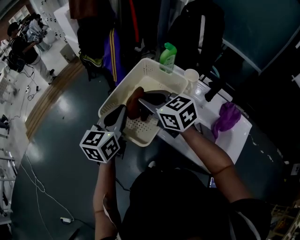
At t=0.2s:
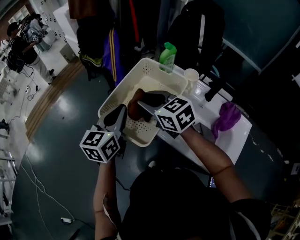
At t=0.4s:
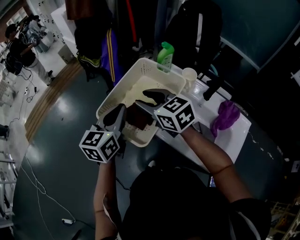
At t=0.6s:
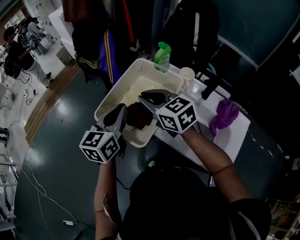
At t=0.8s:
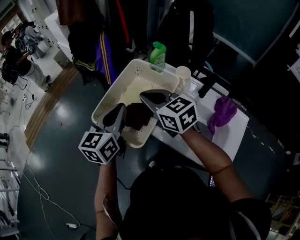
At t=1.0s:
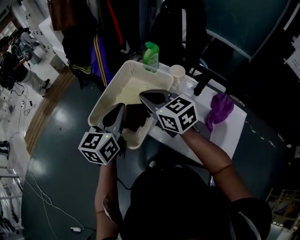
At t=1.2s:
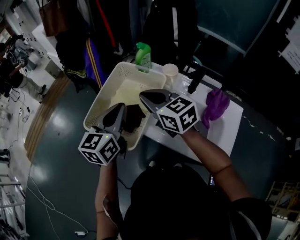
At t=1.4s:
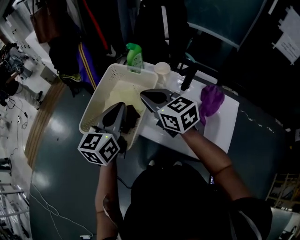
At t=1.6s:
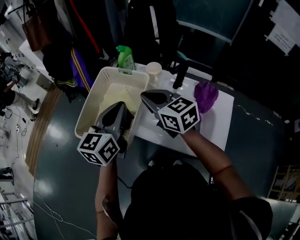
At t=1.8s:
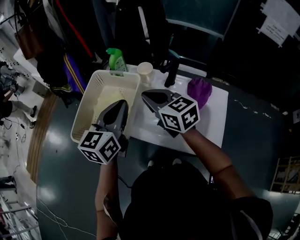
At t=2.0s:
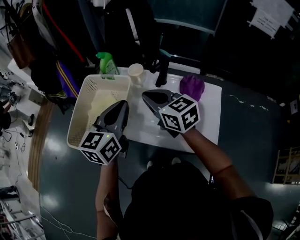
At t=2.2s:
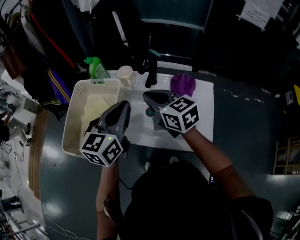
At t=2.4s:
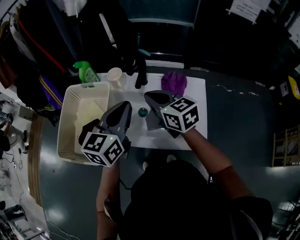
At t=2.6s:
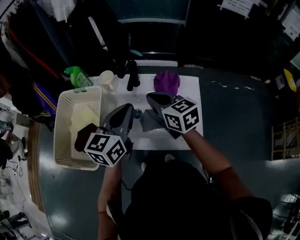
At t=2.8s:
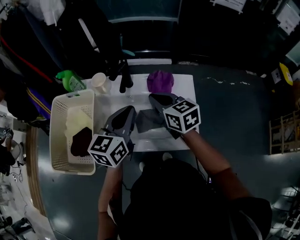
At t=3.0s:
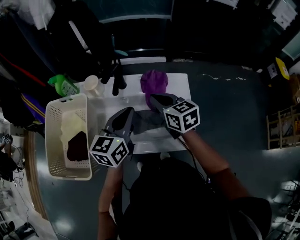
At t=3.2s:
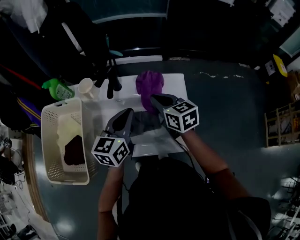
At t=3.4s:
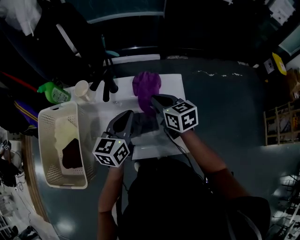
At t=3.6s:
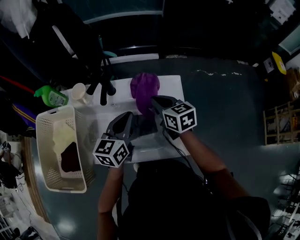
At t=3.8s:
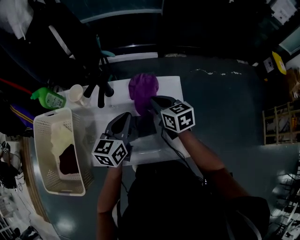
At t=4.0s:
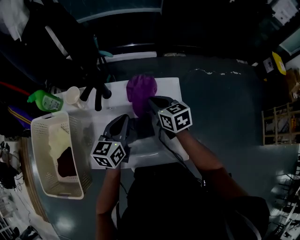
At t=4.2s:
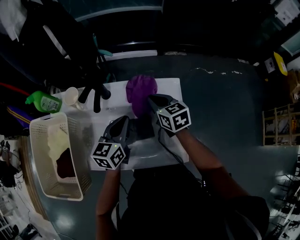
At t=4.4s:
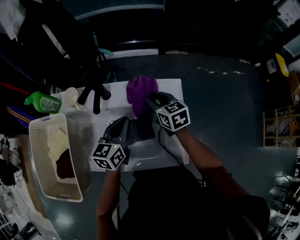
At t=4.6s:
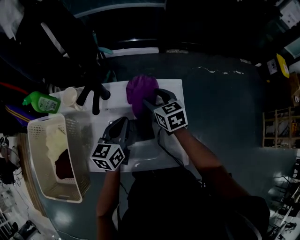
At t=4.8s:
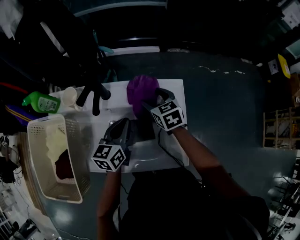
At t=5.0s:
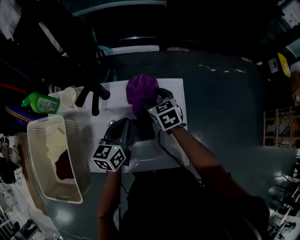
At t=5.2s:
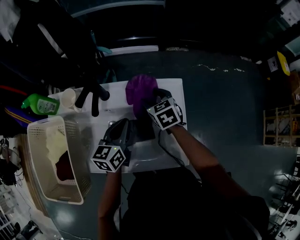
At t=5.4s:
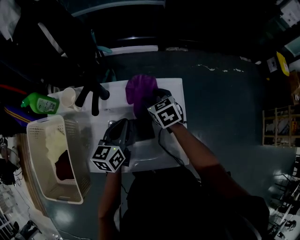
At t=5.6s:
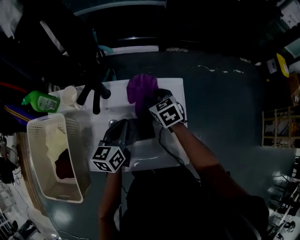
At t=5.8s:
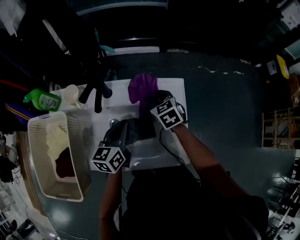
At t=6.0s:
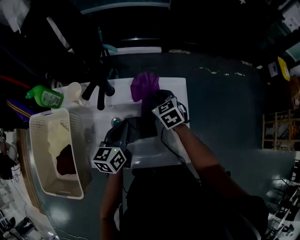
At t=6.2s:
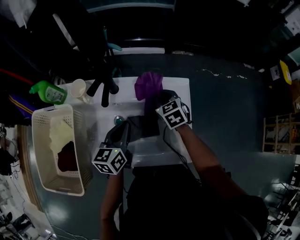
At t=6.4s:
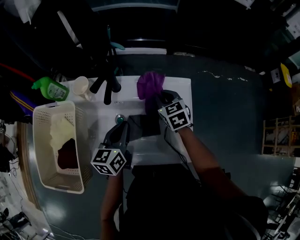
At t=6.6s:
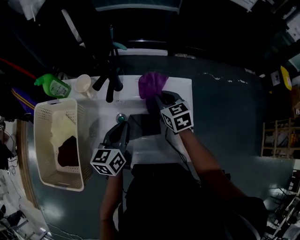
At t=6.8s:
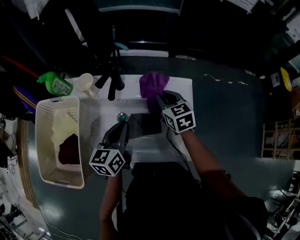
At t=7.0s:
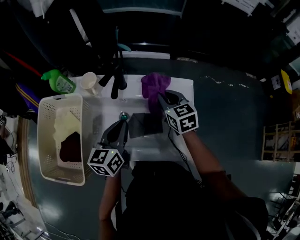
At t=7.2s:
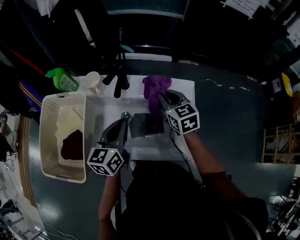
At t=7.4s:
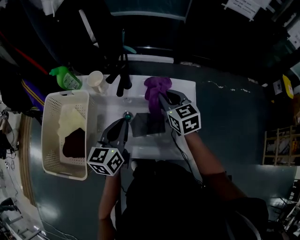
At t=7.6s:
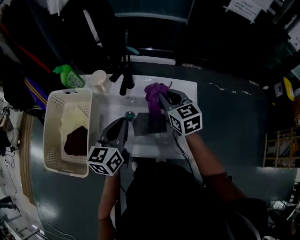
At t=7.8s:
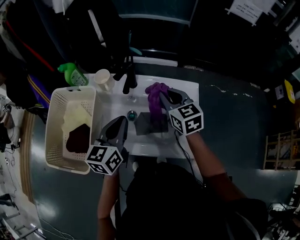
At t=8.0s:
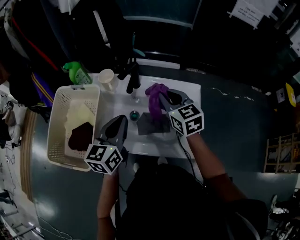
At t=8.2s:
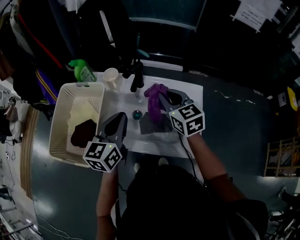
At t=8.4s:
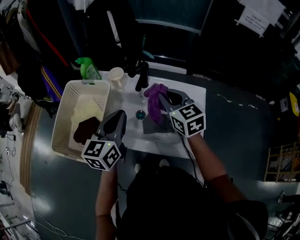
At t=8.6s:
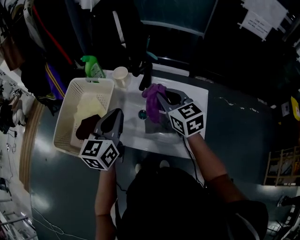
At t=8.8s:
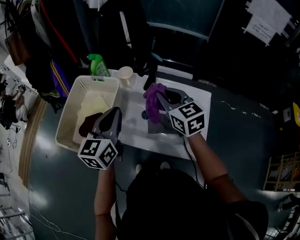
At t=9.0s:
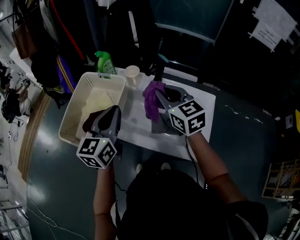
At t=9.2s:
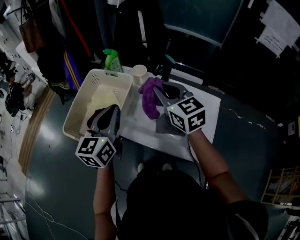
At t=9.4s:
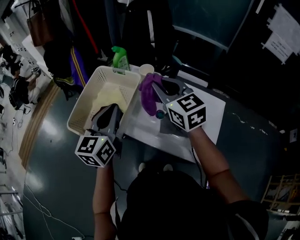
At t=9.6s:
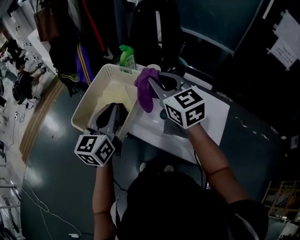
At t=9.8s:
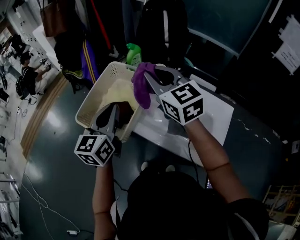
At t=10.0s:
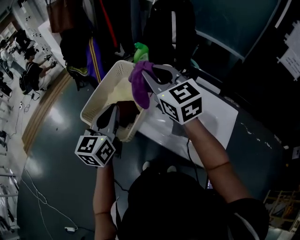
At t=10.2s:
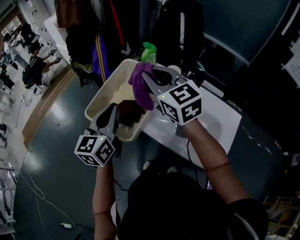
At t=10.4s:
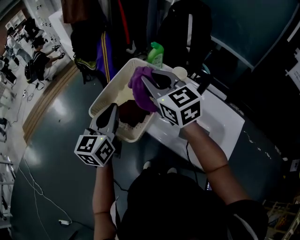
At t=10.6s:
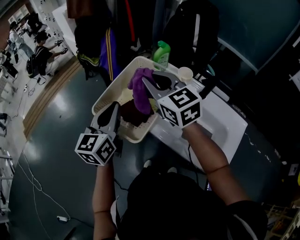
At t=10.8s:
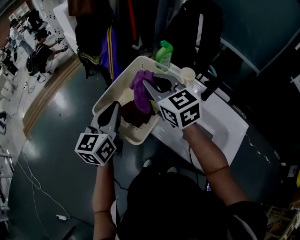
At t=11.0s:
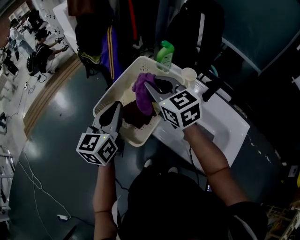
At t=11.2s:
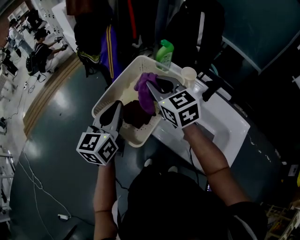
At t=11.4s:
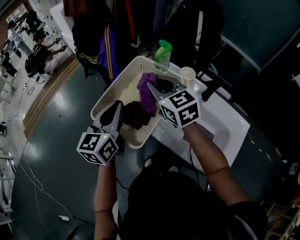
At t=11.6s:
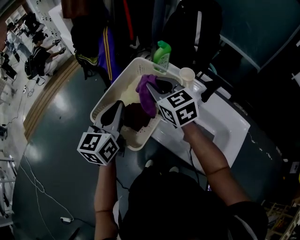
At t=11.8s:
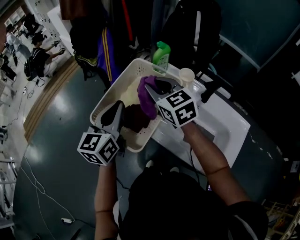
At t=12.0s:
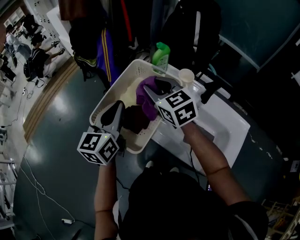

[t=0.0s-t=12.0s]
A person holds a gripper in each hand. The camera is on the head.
t=0.0s to t=1.6s: The grippers both shift to the right by about 15 cm. The right gripper swivels approximately 20 degrees, and opens and closes again.
t=1.6s to t=3.0s: The right gripper shifts by about 30 cm, and changes its angle by about 30 degrees, while the left gripper ends up approximately 25 cm from where it was, and turns by some 30 degrees.
t=3.0s to t=4.4s: The right gripper goes approximately 15 cm downward, forward and to the right, and opens up; the left gripper shifts about 15 cm downward and forward.
t=4.4s to t=6.0s: The right gripper rotates approximately 20 degrees, and opens and closes again.
t=6.0s to t=7.6s: The left gripper goes approximately 15 cm upward, to the left and backward, while the right gripper moves upward and backward, approximately 15 cm.
t=7.6s to t=9.0s: Both grippers travel together to the left and upward, approximately 15 cm.
t=9.0s to t=10.4s: The grippers both shift to the left by about 20 cm. The right gripper turns by approximately 20 degrees.
t=10.4s to t=12.0s: The right gripper travels downward and forward by some 10 cm, while the left gripper heads forward, covering about 5 cm.

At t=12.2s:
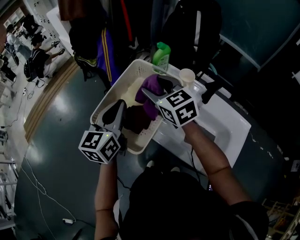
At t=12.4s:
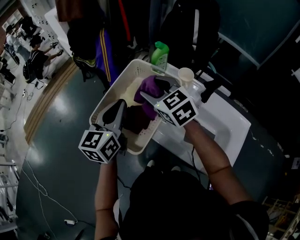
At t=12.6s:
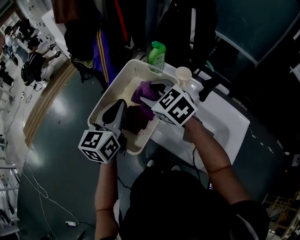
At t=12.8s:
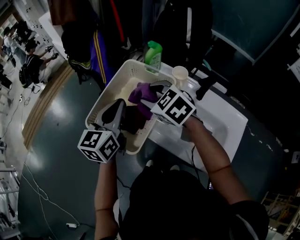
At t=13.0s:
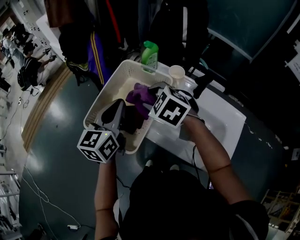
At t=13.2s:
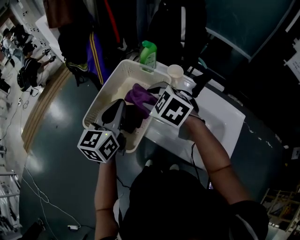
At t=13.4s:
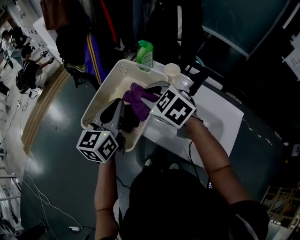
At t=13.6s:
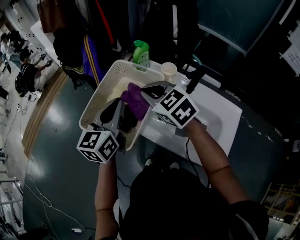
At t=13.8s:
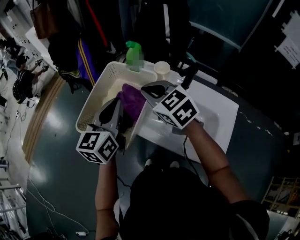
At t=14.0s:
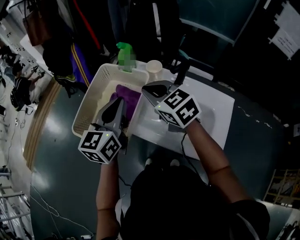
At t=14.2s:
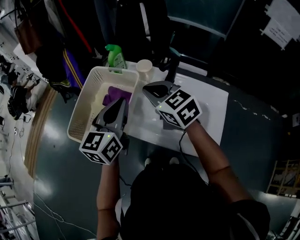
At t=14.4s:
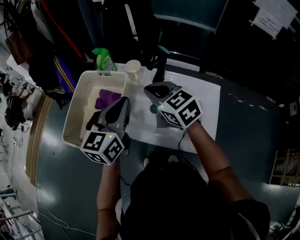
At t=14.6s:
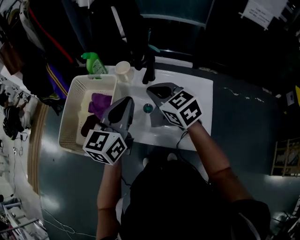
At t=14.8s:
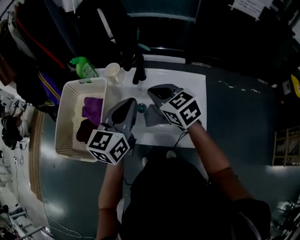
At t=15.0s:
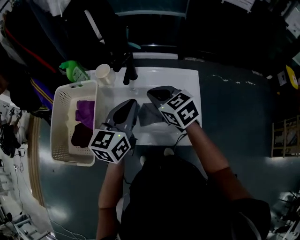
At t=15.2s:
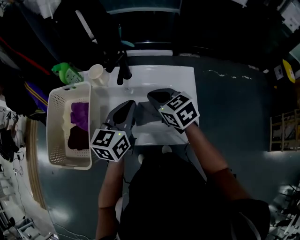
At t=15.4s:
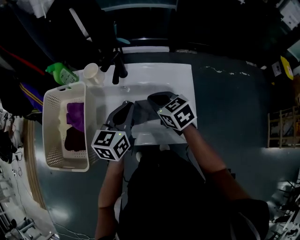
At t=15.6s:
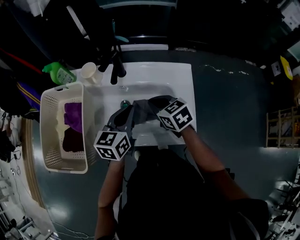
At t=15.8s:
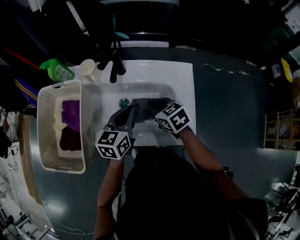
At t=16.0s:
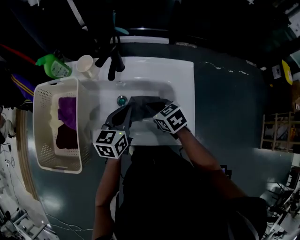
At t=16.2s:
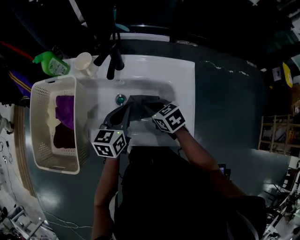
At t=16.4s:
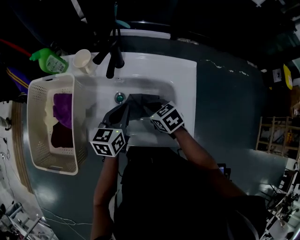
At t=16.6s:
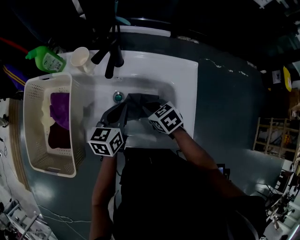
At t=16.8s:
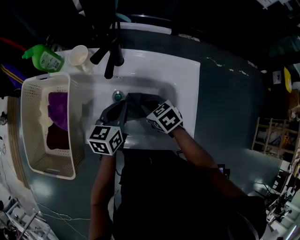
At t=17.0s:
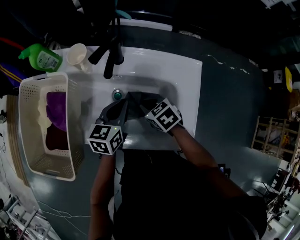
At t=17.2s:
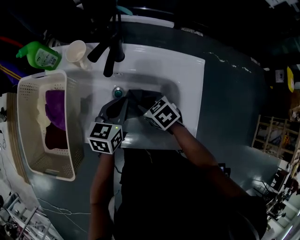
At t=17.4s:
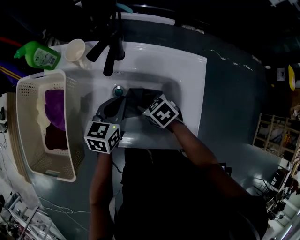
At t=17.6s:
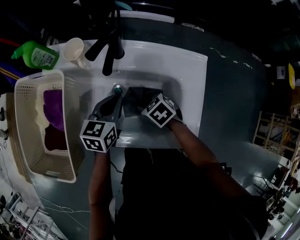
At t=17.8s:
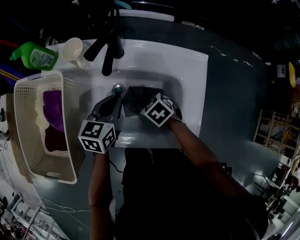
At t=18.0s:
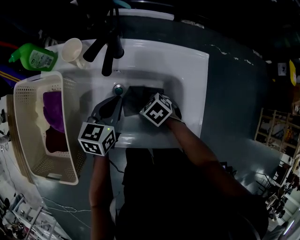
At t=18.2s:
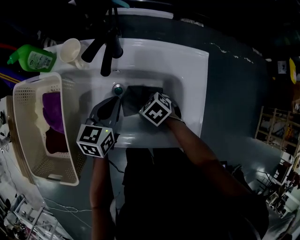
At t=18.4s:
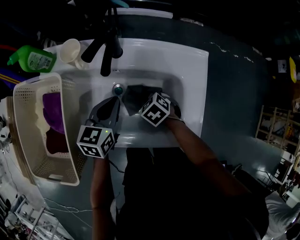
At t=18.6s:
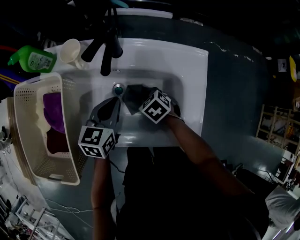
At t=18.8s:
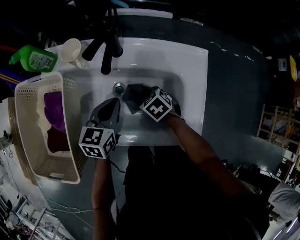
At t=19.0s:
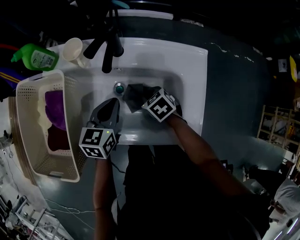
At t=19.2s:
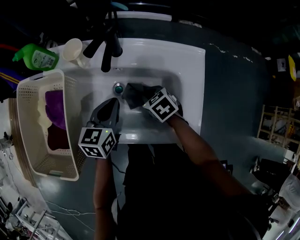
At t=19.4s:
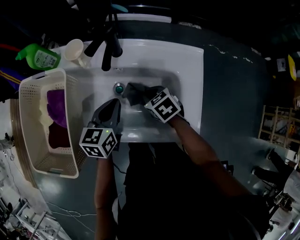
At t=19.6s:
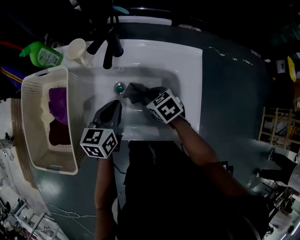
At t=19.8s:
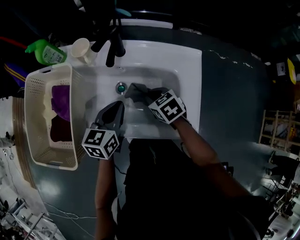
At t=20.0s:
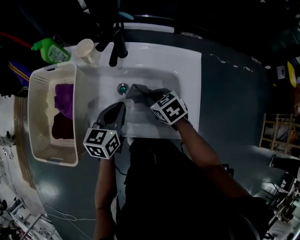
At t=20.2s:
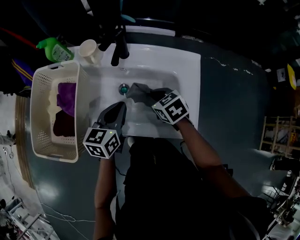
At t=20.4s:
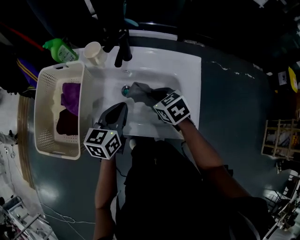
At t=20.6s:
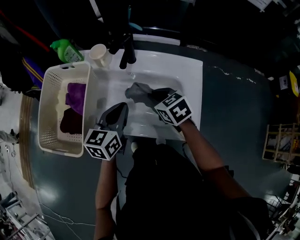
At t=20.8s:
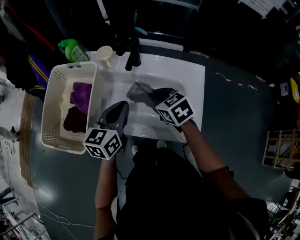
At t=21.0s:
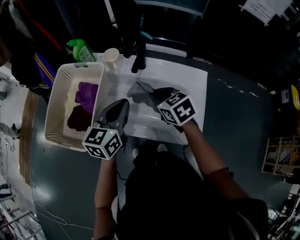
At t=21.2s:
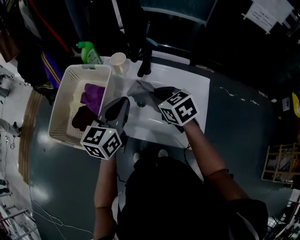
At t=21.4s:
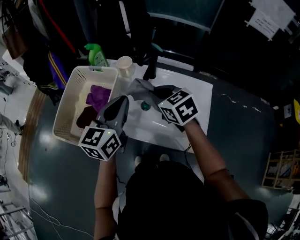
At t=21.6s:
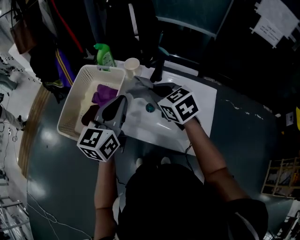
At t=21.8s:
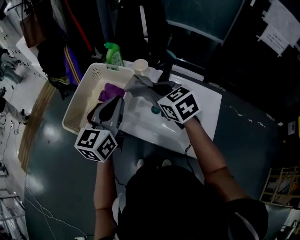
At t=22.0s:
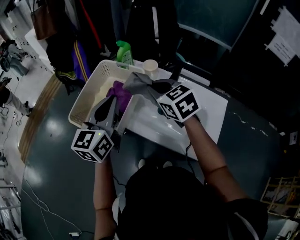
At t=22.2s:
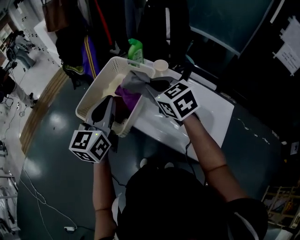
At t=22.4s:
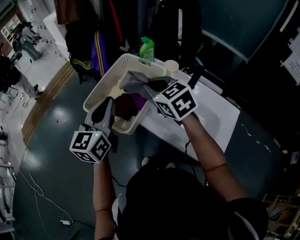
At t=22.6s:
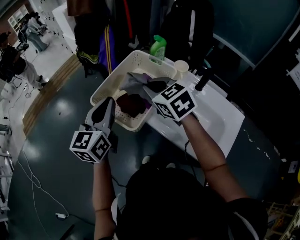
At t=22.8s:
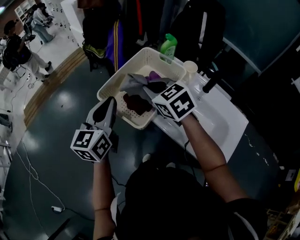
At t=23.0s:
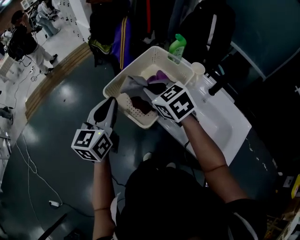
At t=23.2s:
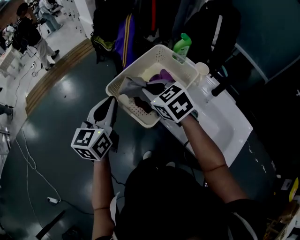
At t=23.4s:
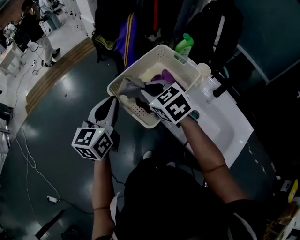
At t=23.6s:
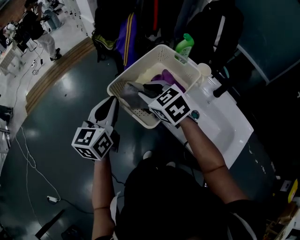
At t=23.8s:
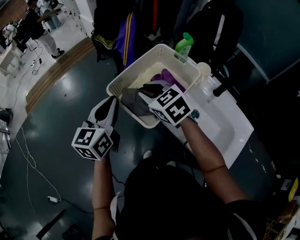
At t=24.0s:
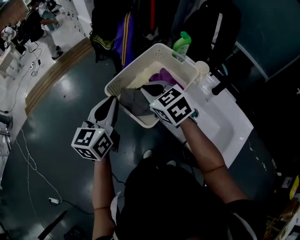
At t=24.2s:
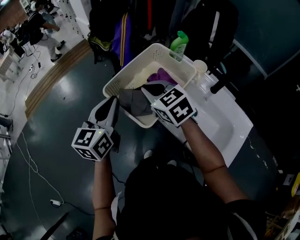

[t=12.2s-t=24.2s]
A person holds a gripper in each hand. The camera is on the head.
t=12.2s to t=13.8s: The right gripper heads backward and to the right, covering some 10 cm, and closes its fingers; the left gripper travels to the right by roughly 5 cm.
t=13.8s to t=15.2s: The right gripper changes place by approximately 30 cm, and rotates roughly 30 degrees. The left gripper ends up about 30 cm from where it was, and turns by about 30 degrees.
t=15.2s to t=16.6s: Both grippers travel together downward, roughly 15 cm. The right gripper changes its angle by roughly 20 degrees.
t=16.6s to t=18.2s: The right gripper goes approximately 10 cm downward, and opens its fingers.
t=18.2s to t=19.8s: The right gripper shifts approximately 10 cm upward, and closes its fingers. The left gripper travels backward by some 5 cm.
t=19.8s to t=21.2s: Both grippers move upward, approximately 15 cm.
t=21.2s to t=22.6s: The left gripper ends up approximately 25 cm from where it was, and swivels approximately 30 degrees, while the right gripper shifts by some 25 cm, and rotates approximately 30 degrees.
t=22.6s to t=24.2s: The two grippers go about 5 cm to the left.
